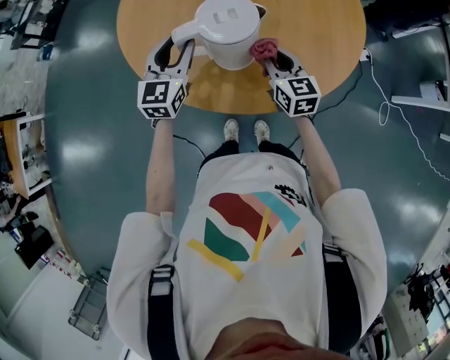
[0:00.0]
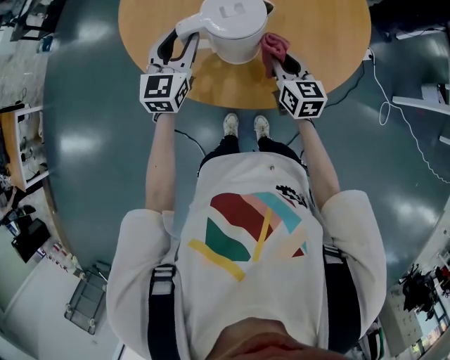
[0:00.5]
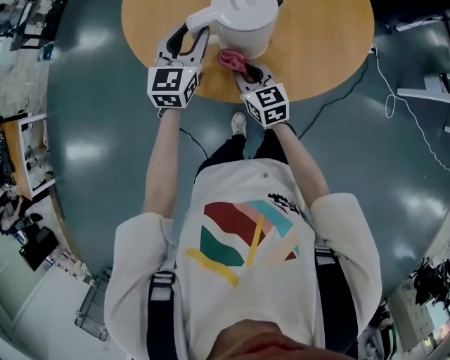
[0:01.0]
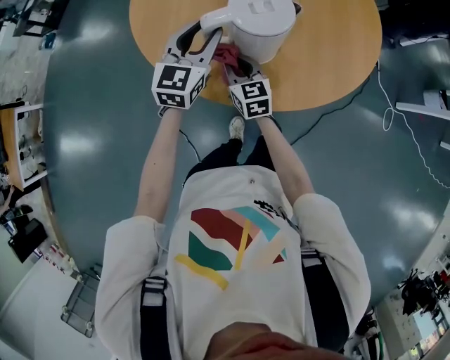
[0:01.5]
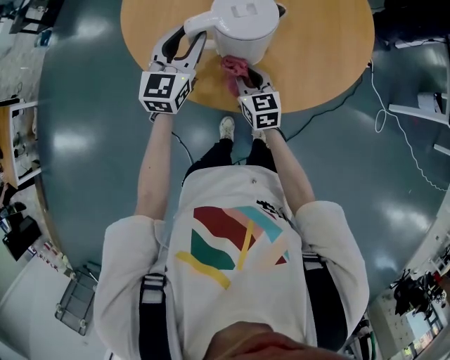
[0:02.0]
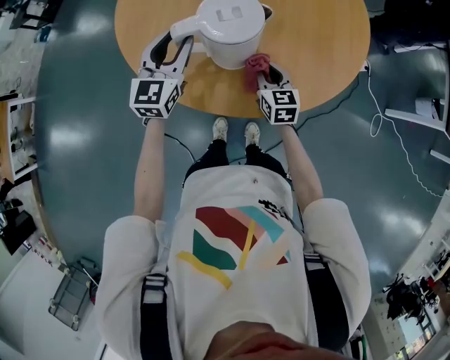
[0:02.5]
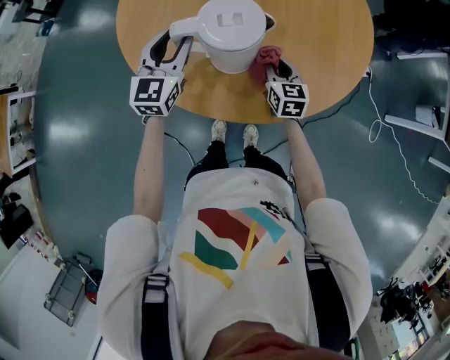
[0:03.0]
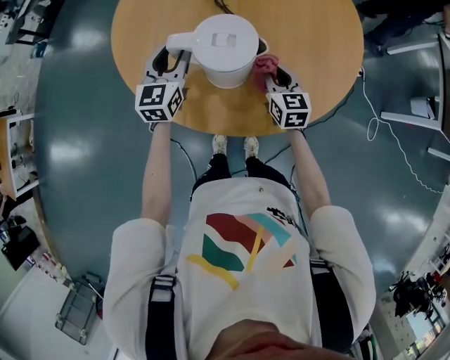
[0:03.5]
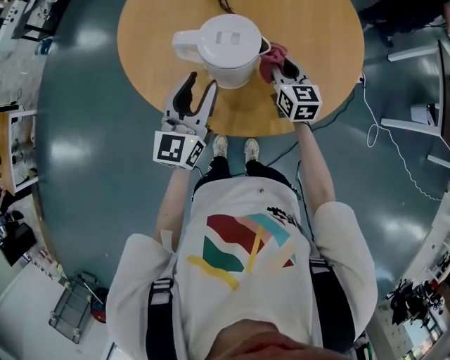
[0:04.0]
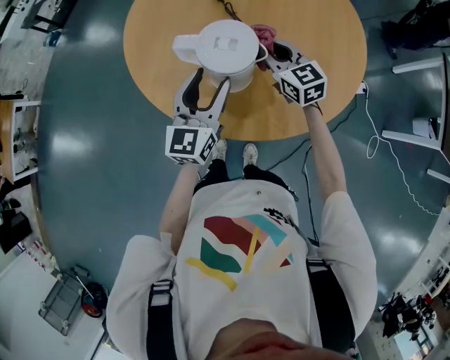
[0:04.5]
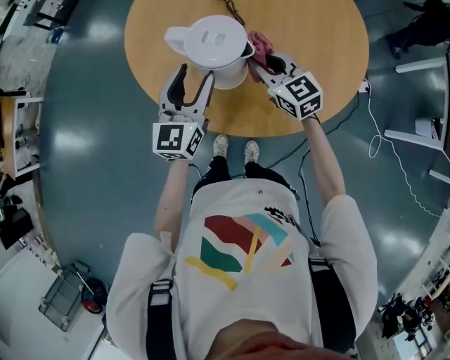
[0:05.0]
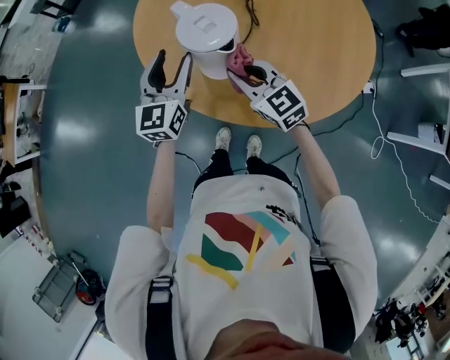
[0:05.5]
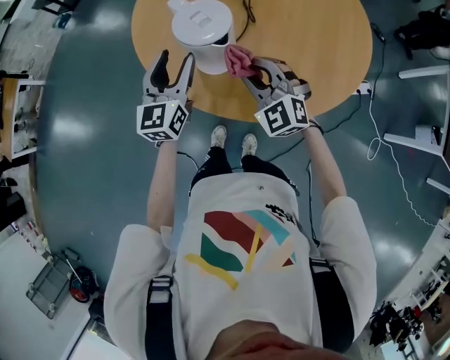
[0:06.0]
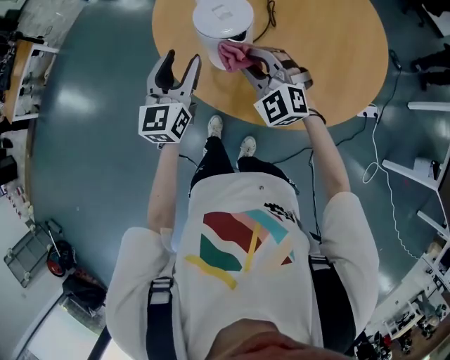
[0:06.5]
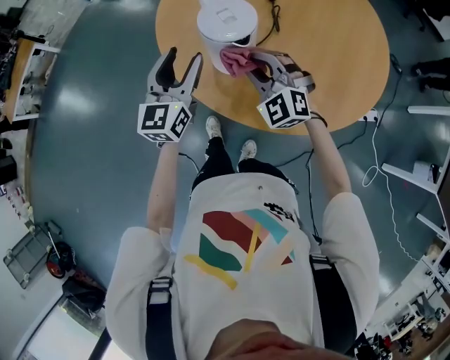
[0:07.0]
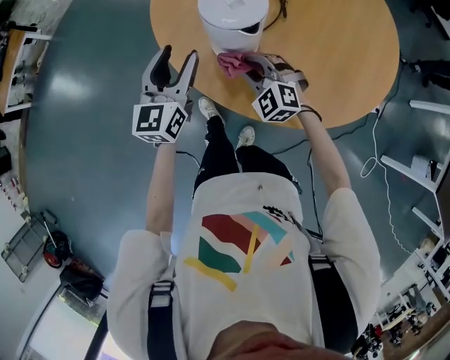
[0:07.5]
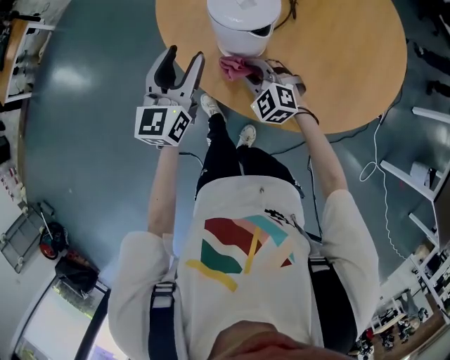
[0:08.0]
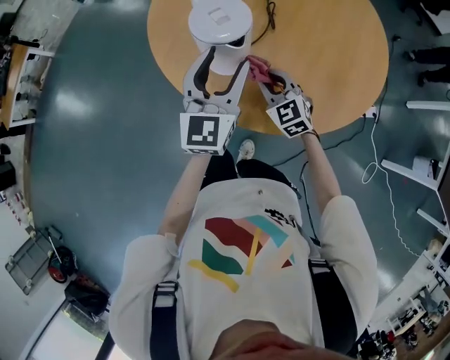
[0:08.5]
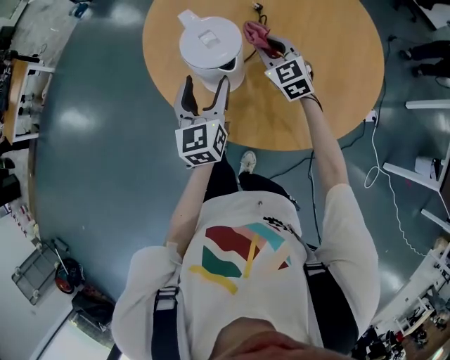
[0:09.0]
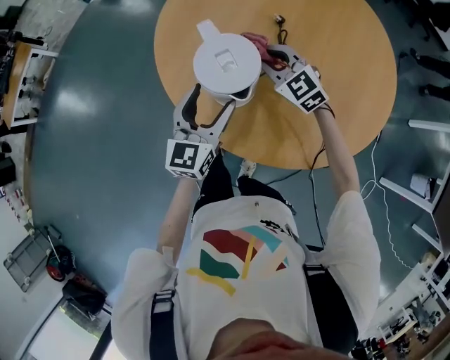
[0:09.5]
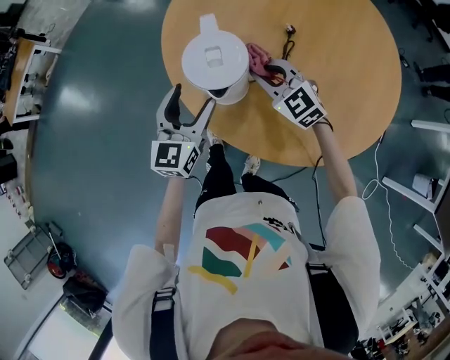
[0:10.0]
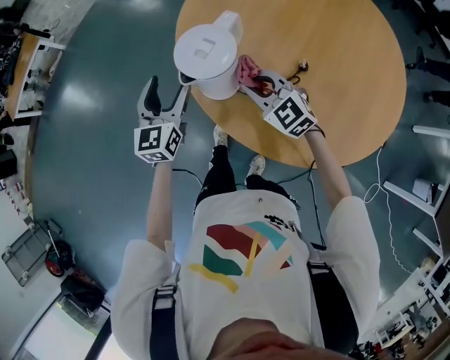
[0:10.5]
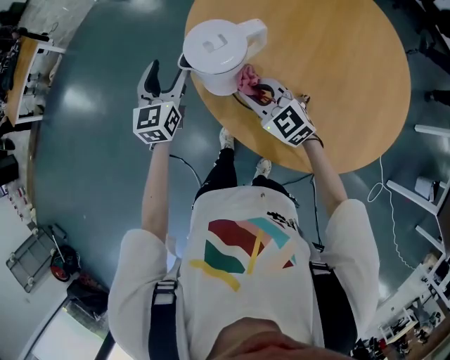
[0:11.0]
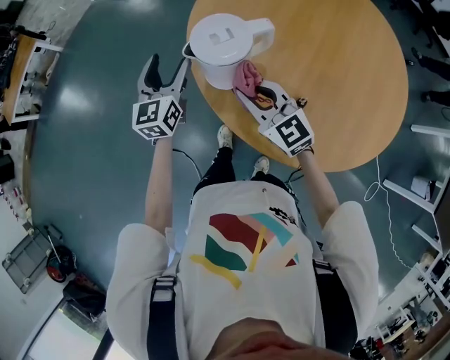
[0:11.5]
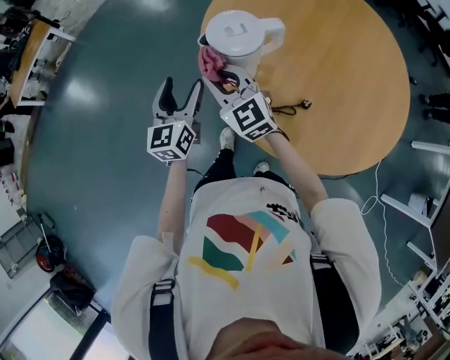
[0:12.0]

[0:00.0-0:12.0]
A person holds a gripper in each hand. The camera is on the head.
0:00.0 to 0:02.0: The right gripper goes some 15 cm to the left and downward.
0:02.0 to 0:04.0: The right gripper goes roughly 20 cm to the right, forward and upward. The left gripper moves backward and to the right, roughly 10 cm.
0:04.0 to 0:06.0: The right gripper ends up roughly 15 cm from where it was, and rotates around the line of its fingers by approximately 50 degrees, counterclockwise from behind.
0:06.0 to 0:08.0: The left gripper moves roughly 5 cm. Meanwhile the right gripper is displaced downward by roughly 15 cm, and changes its angle by about 20 degrees.
0:08.0 to 0:10.0: The right gripper travels upward and forward by approximately 15 cm, and turns by approximately 20 degrees. The left gripper travels to the right and back again, roughly 10 cm each way.
0:10.0 to 0:12.0: The left gripper shifts roughly 15 cm to the left and forward. Meanwhile the right gripper is displaced to the left by approximately 20 cm.

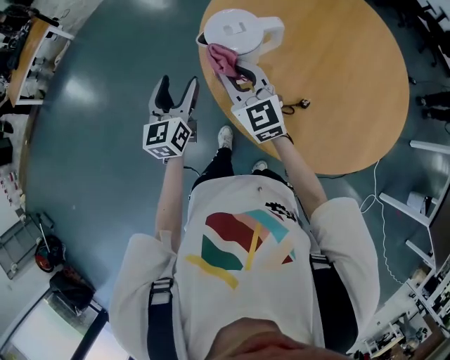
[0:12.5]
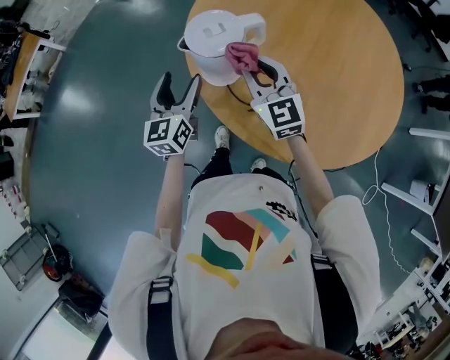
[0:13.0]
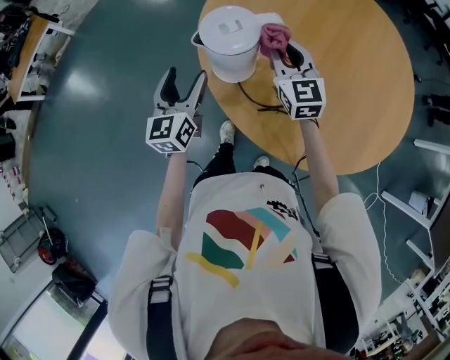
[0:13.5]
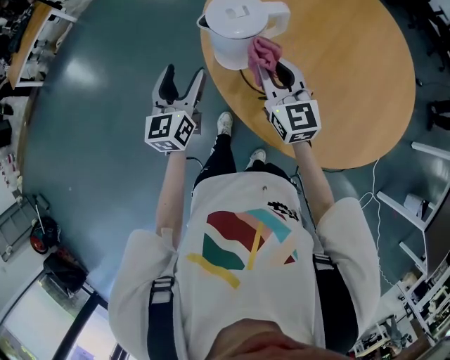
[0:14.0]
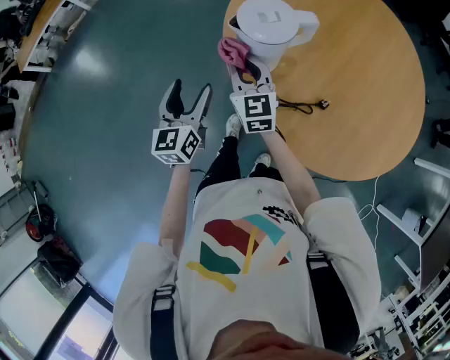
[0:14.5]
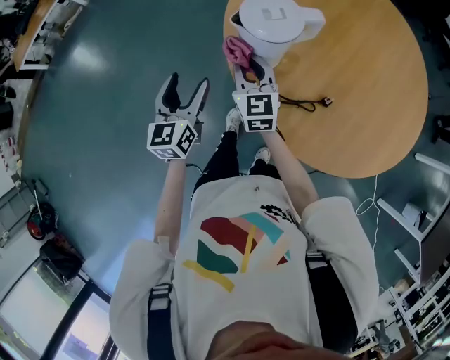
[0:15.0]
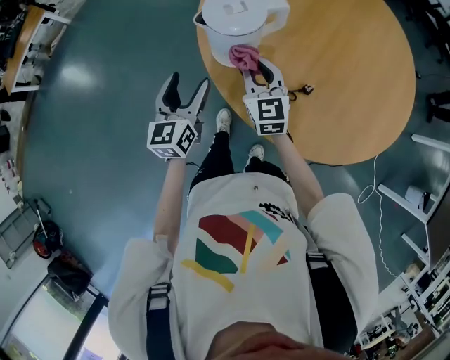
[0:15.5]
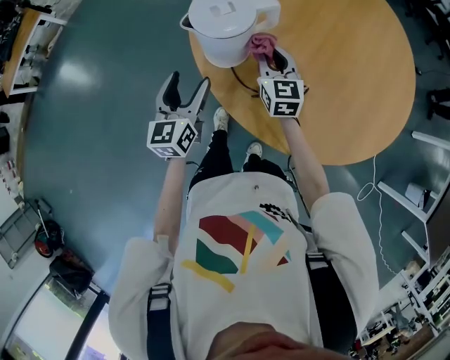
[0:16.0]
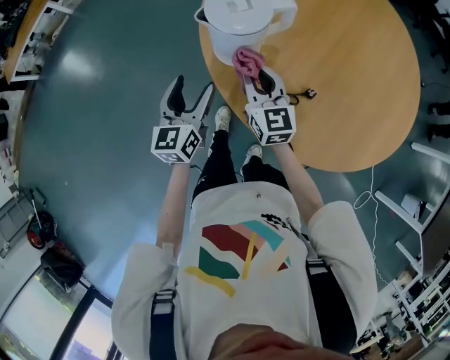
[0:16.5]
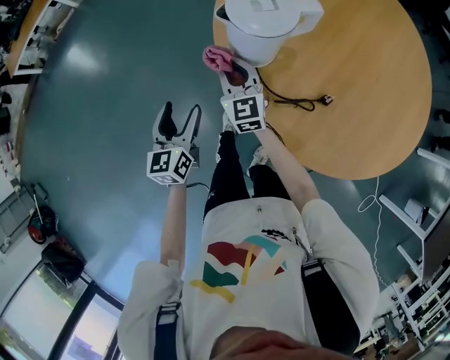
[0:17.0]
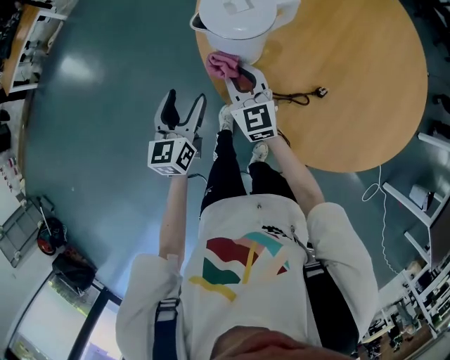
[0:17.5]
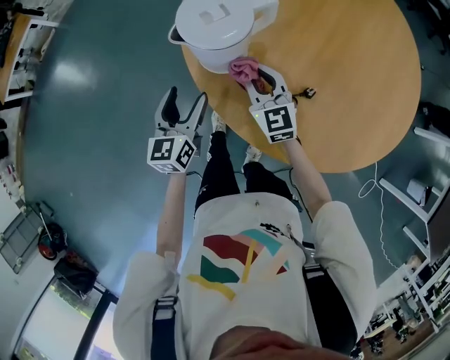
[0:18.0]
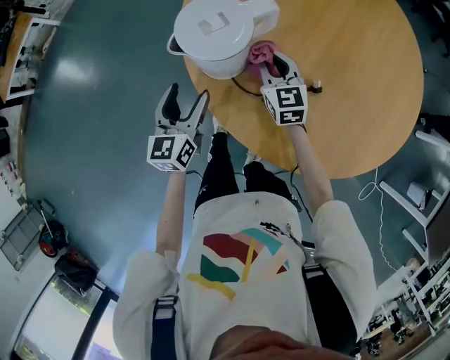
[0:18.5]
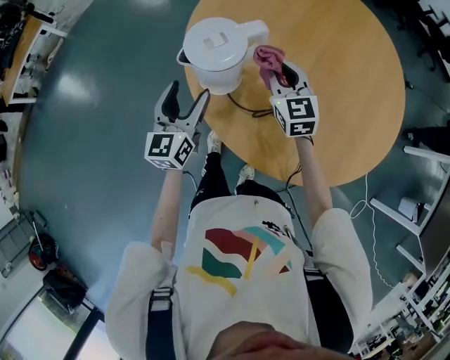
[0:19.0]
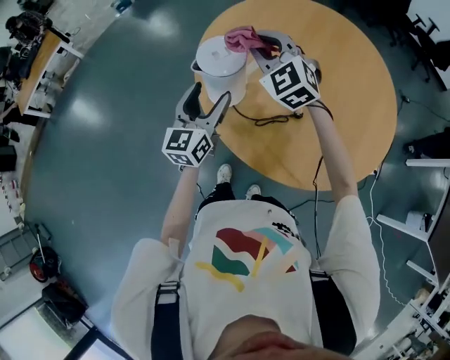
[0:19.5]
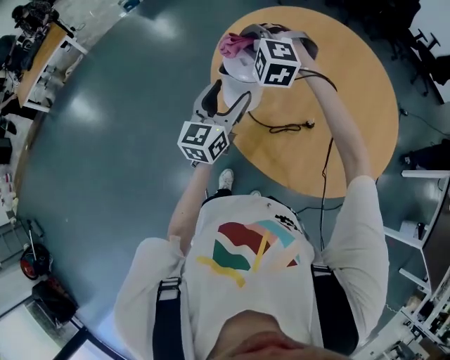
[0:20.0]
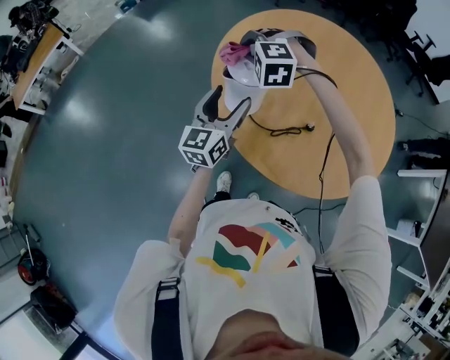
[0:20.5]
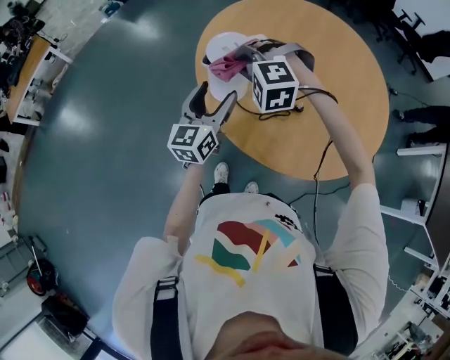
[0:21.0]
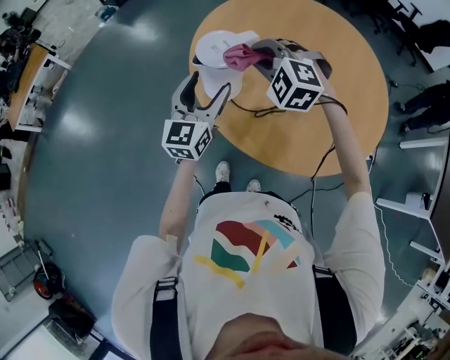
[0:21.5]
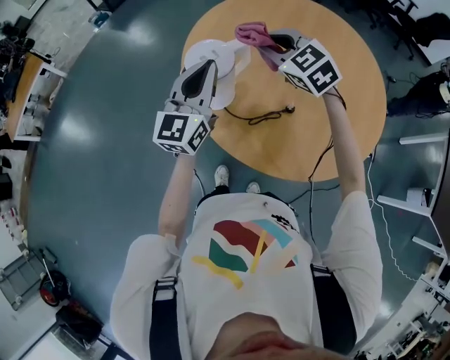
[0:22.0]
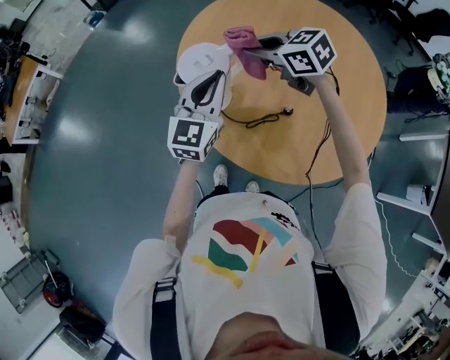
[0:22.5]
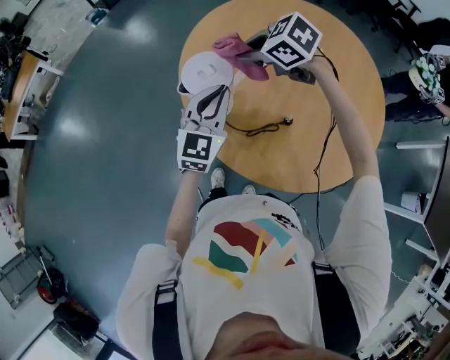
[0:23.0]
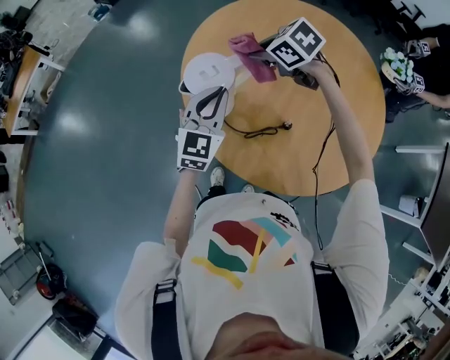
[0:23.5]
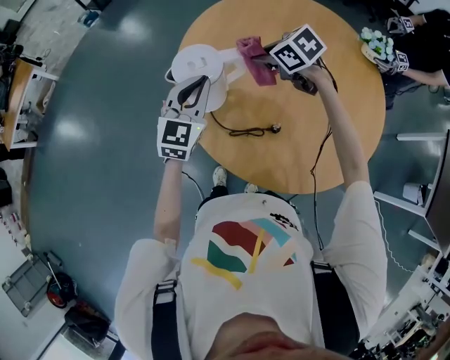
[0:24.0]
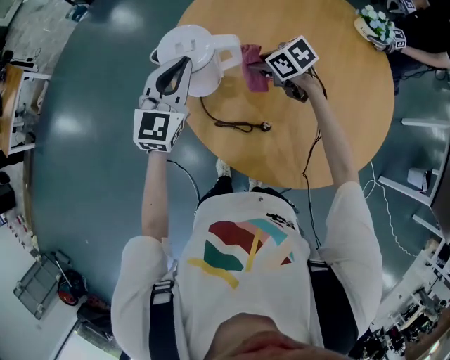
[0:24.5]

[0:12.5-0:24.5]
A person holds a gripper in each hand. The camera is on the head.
0:12.5 to 0:14.5: The right gripper moves downward, some 5 cm, and moves about 15 cm to the right and comes back. Meanwhile the left gripper heads backward, covering about 5 cm.
0:14.5 to 0:16.5: Both grippers travel together to the right, about 10 cm.
0:16.5 to 0:18.5: The left gripper reaches about 10 cm to the left, then returns, while the right gripper travels forward, to the right and downward by some 15 cm.
0:18.5 to 0:20.5: The right gripper heads upward and to the left, covering roughly 25 cm, and rolls counterclockwise, seen from behind, by approximately 80 degrees, while the left gripper heads upward, covering approximately 15 cm.
0:20.5 to 0:22.5: Both grippers travel together to the right, approximately 10 cm. The right gripper rotates around the line of its fingers by approximately 70 degrees, clockwise from behind; the left gripper rotates about 20 degrees, and closes.
0:22.5 to 0:24.5: The right gripper shifts approximately 15 cm downward, and rotates roughly 30 degrees, while the left gripper heads forward, covering roughly 15 cm.

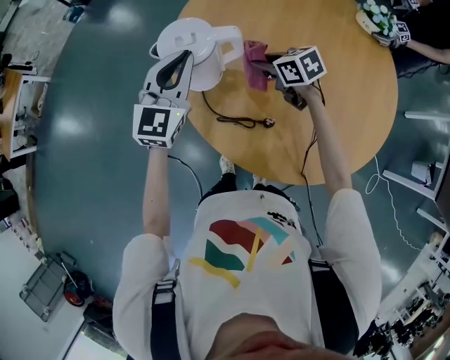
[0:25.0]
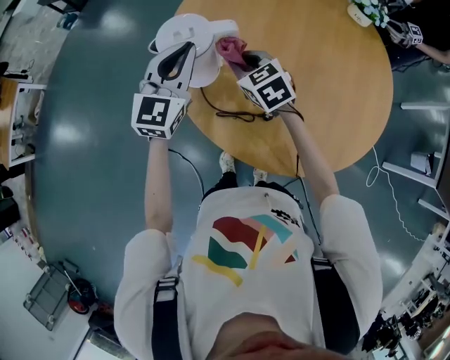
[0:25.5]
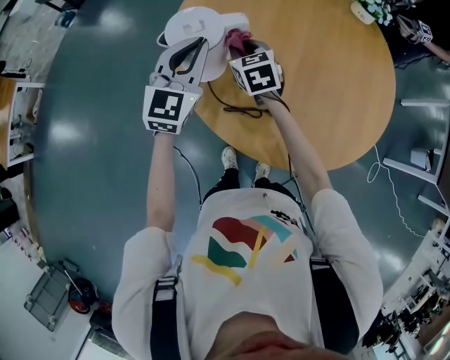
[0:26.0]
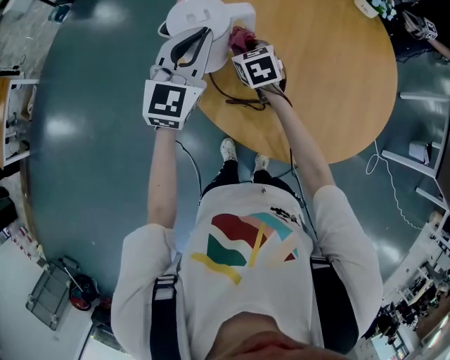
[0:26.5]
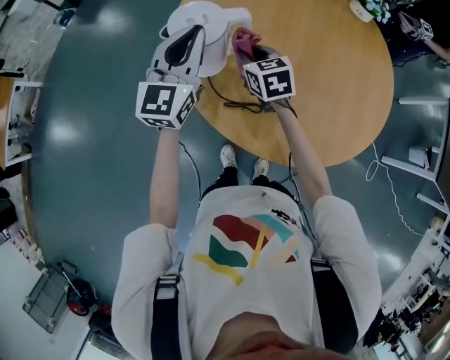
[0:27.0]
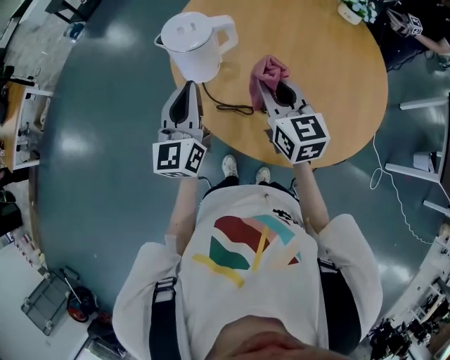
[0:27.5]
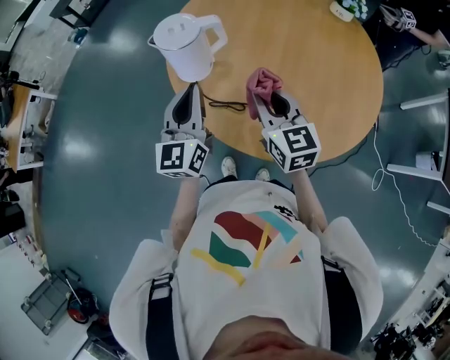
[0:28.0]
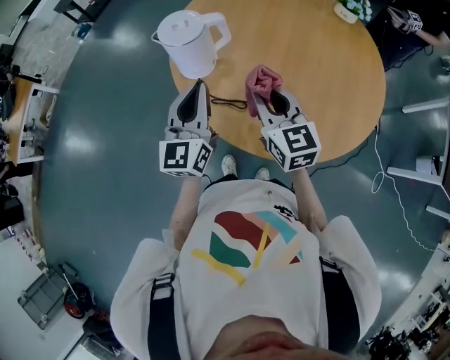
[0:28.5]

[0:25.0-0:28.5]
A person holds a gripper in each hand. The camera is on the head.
0:25.0 to 0:27.0: The right gripper moves up and down over approximately 5 cm, changing direction 2 times, and turns by some 30 degrees.
0:27.0 to 0:28.5: The left gripper heads backward, covering some 15 cm; the right gripper moves backward and upward, approximately 25 cm, and changes its angle by approximately 20 degrees.
